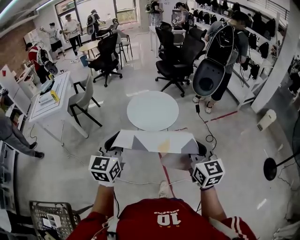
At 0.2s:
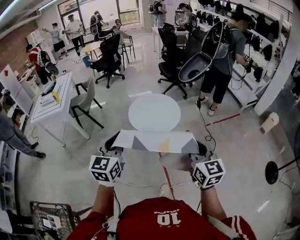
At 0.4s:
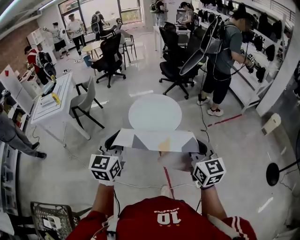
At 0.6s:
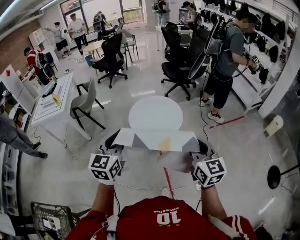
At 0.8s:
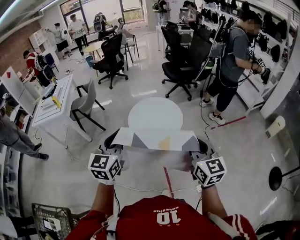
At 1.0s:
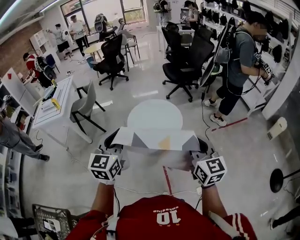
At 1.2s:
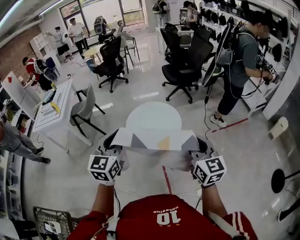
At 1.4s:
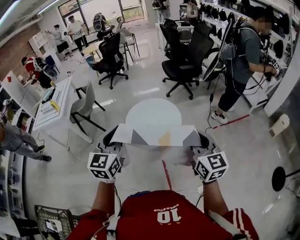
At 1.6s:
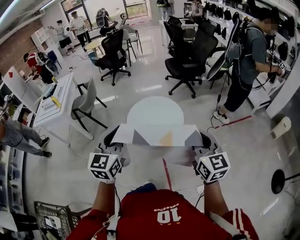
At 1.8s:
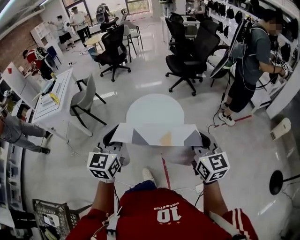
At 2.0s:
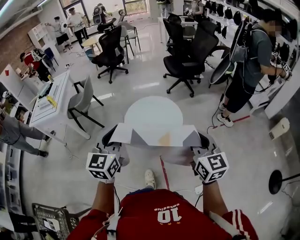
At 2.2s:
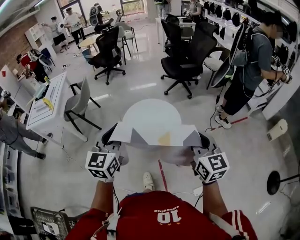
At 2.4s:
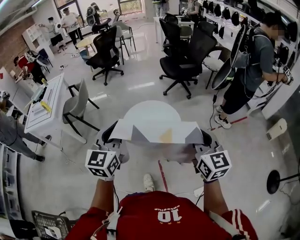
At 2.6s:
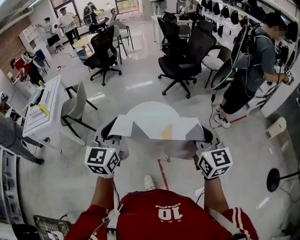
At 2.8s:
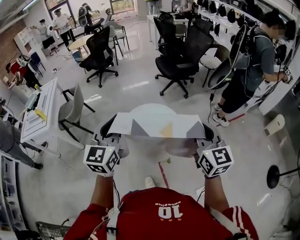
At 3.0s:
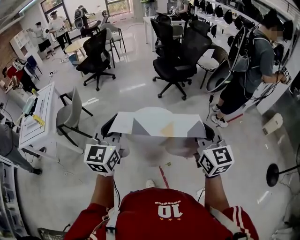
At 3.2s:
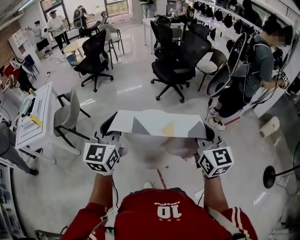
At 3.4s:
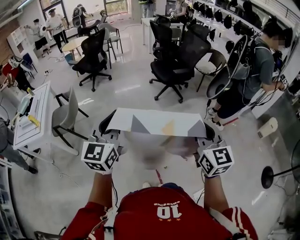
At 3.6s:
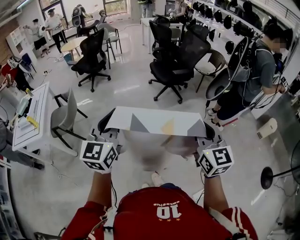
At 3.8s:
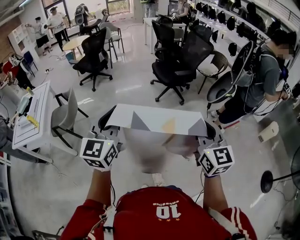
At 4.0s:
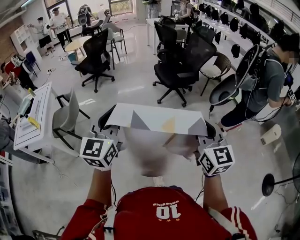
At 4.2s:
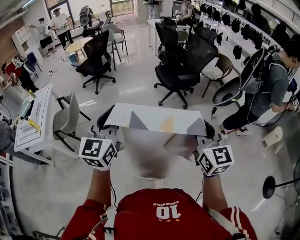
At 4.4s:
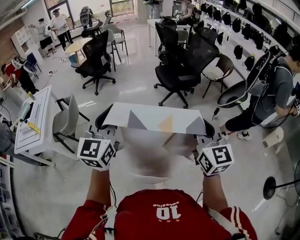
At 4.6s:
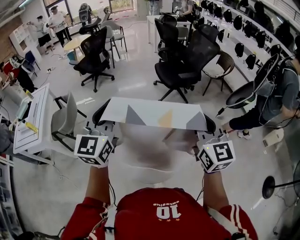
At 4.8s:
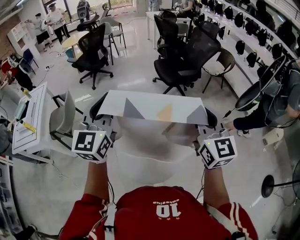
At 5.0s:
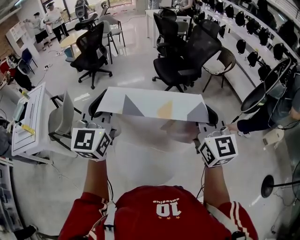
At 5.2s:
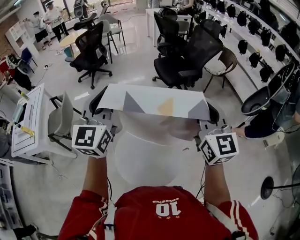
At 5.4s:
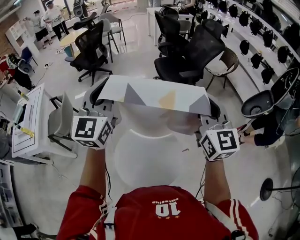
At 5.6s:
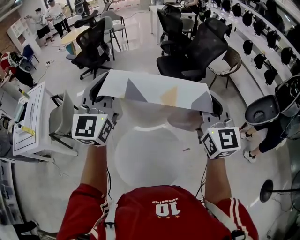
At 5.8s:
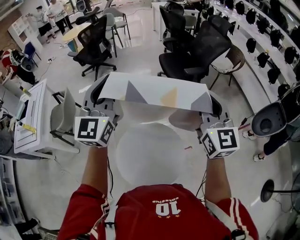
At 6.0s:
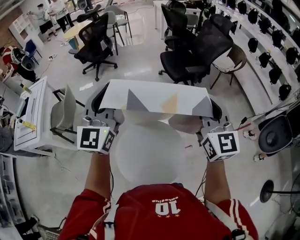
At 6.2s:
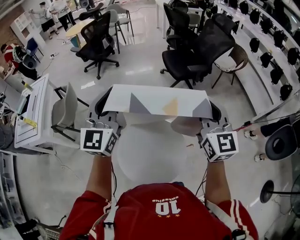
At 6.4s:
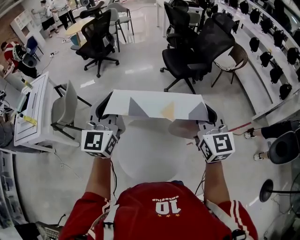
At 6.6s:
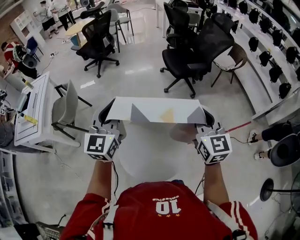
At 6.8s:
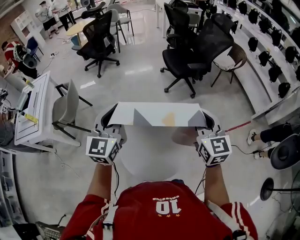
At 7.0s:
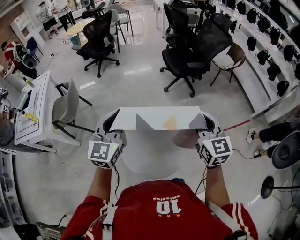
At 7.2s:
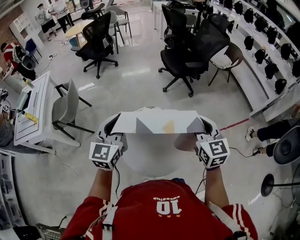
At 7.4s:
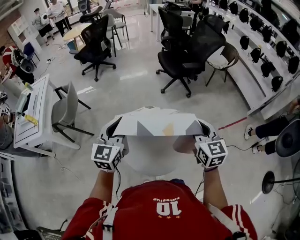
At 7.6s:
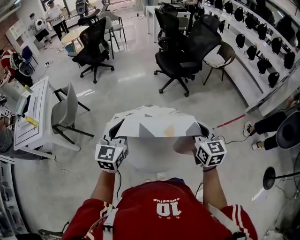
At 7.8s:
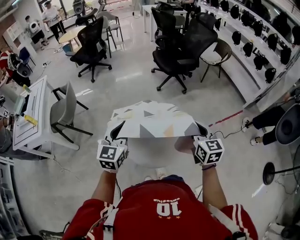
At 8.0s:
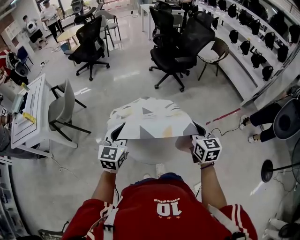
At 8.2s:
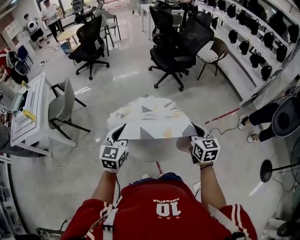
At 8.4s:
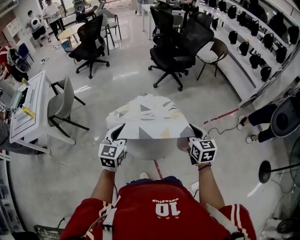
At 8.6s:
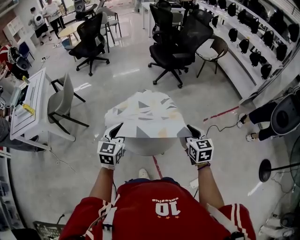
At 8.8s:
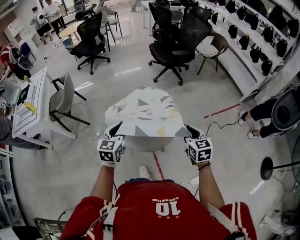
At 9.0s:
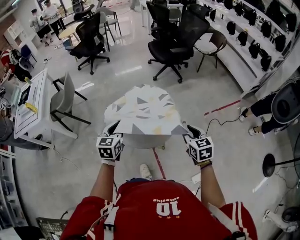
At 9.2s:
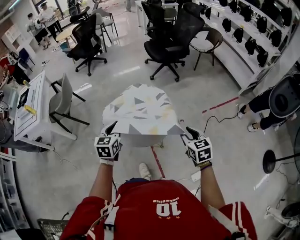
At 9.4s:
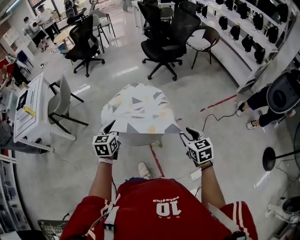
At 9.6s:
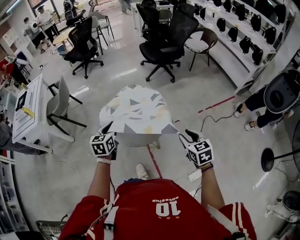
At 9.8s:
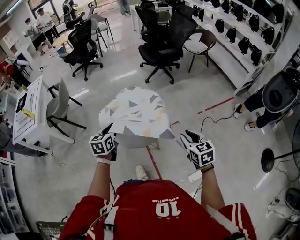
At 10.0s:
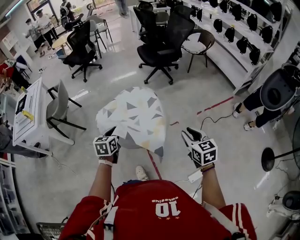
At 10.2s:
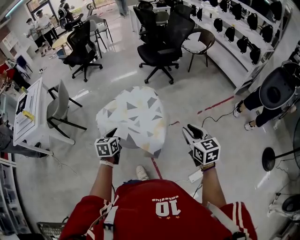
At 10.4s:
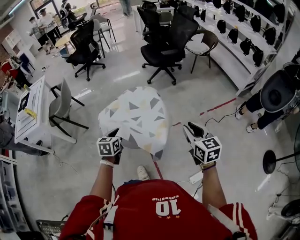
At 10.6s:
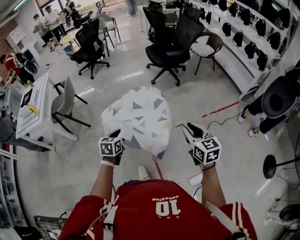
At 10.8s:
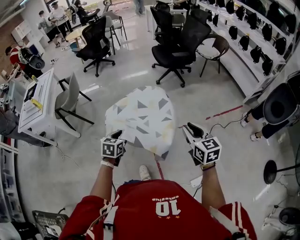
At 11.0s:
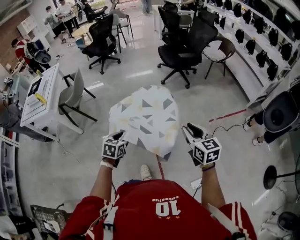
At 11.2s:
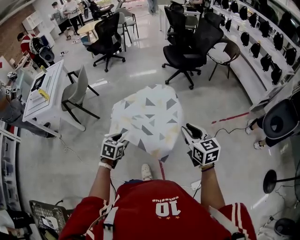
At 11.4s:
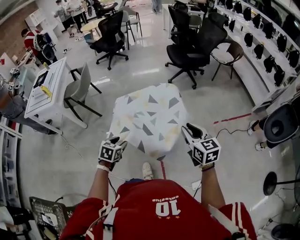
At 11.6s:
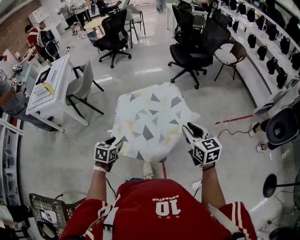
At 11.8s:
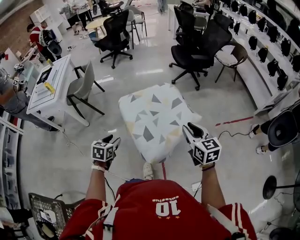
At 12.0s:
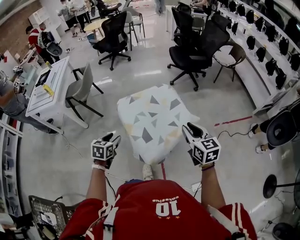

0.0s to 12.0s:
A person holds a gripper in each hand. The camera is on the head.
0.0s to 1.6s: The grippers both shift forward and to the right by roughly 20 cm.
1.6s to 3.0s: The grippers both shift forward by some 20 cm.
3.0s to 4.4s: The two grippers go about 15 cm forward.
4.4s to 6.0s: The grippers both shift forward by approximately 15 cm.
6.0s to 7.6s: Both grippers travel together backward and downward, some 25 cm. The left gripper changes its angle by about 20 degrees. The right gripper changes its angle by approximately 20 degrees.
7.6s to 9.0s: The left gripper moves backward and downward, approximately 15 cm. The right gripper heads backward, downward and to the right, covering about 20 cm, and opens.
9.0s to 10.4s: The left gripper shifts about 5 cm downward. Meanwhile the right gripper goes some 10 cm upward and to the right.
10.4s to 12.0s: The left gripper shifts about 15 cm to the left and backward, and opens up. The right gripper travels to the left by some 10 cm.

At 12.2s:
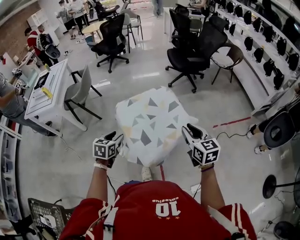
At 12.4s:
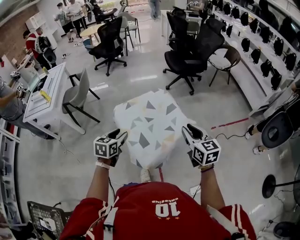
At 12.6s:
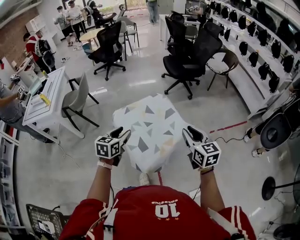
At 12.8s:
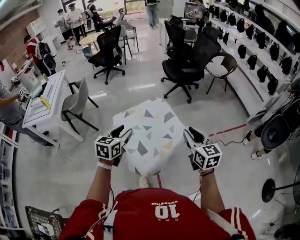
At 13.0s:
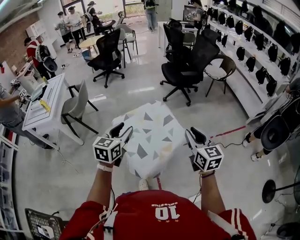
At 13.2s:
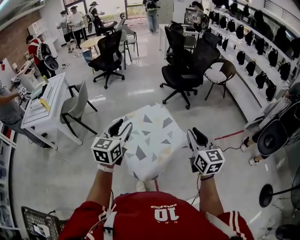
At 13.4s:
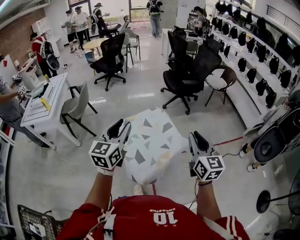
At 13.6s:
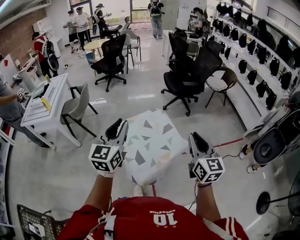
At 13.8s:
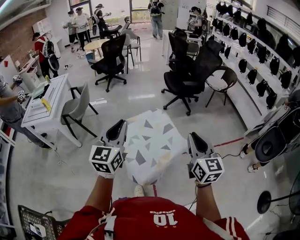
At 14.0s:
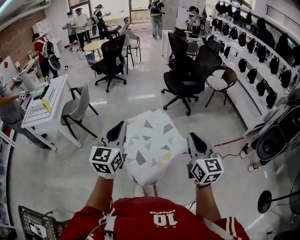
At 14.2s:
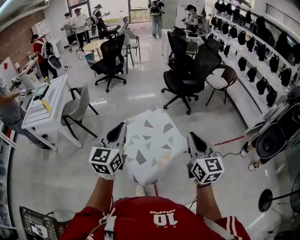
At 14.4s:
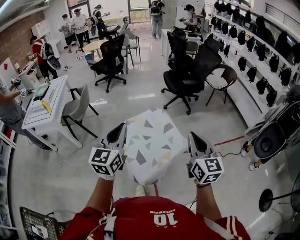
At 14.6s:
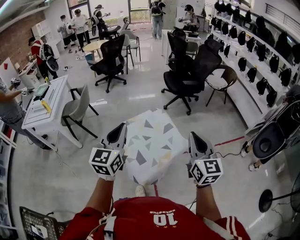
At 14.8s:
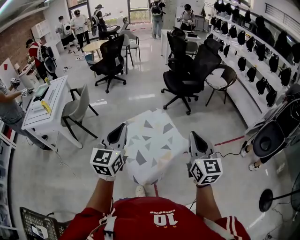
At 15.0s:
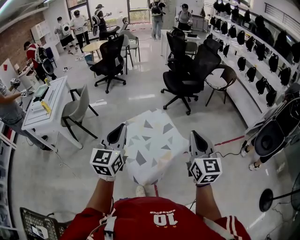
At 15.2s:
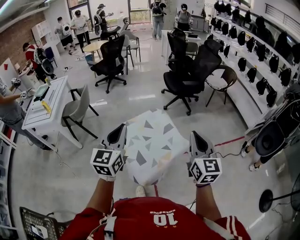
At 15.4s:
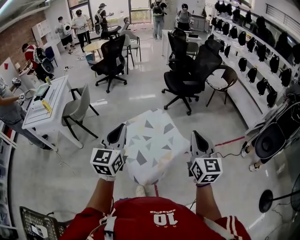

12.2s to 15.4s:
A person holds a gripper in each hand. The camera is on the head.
12.2s to 13.8s: The right gripper shifts some 15 cm upward, and turns by about 20 degrees; the left gripper goes some 25 cm upward, tilts its fingers about 40 degrees upward, and closes up.
13.8s to 15.4s: The grippers move only a little.

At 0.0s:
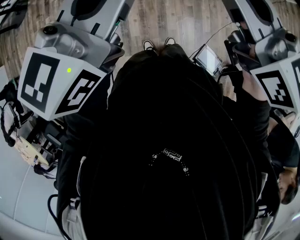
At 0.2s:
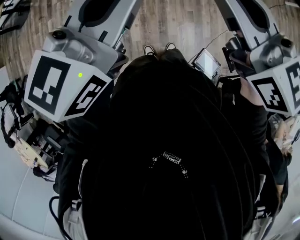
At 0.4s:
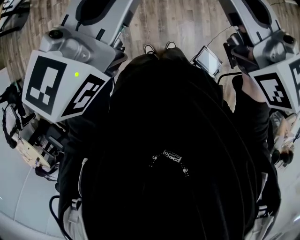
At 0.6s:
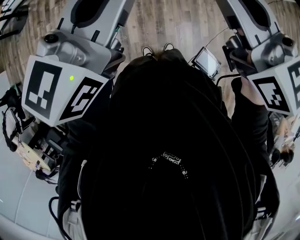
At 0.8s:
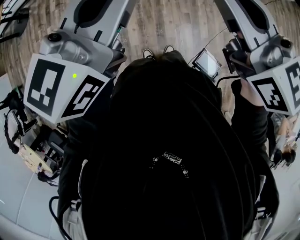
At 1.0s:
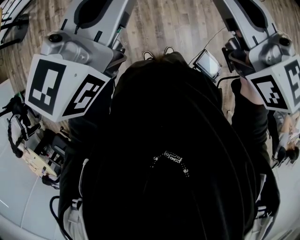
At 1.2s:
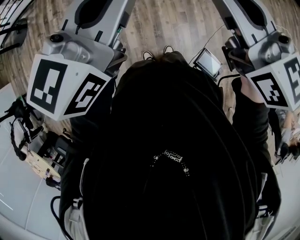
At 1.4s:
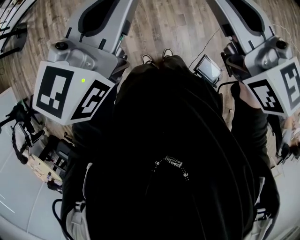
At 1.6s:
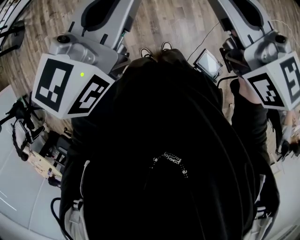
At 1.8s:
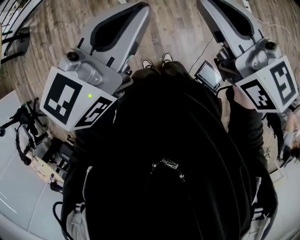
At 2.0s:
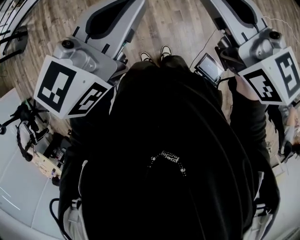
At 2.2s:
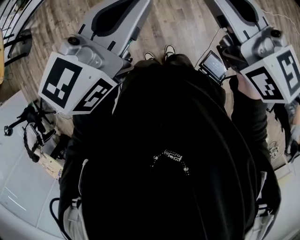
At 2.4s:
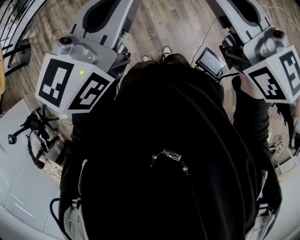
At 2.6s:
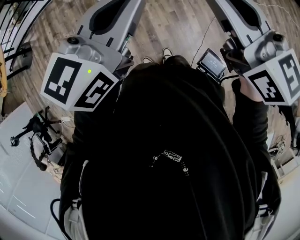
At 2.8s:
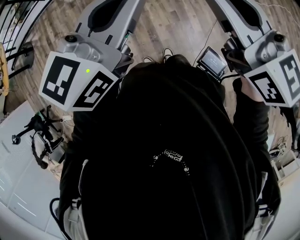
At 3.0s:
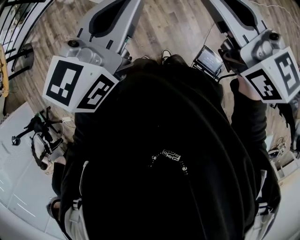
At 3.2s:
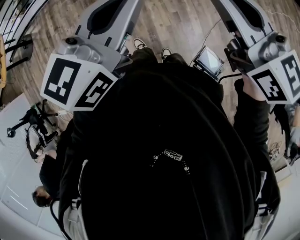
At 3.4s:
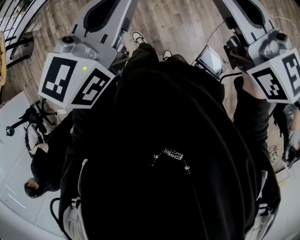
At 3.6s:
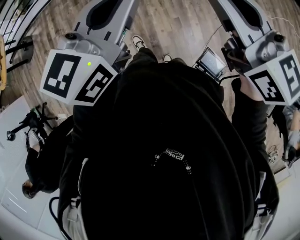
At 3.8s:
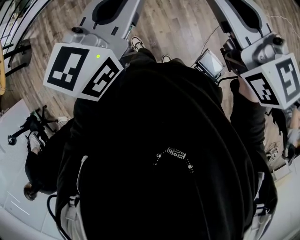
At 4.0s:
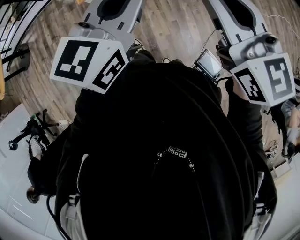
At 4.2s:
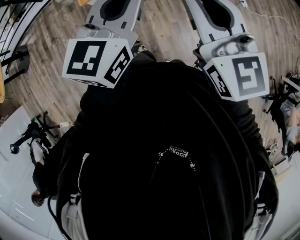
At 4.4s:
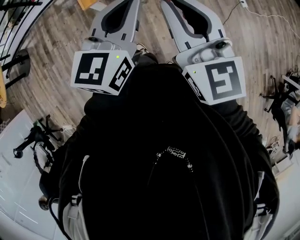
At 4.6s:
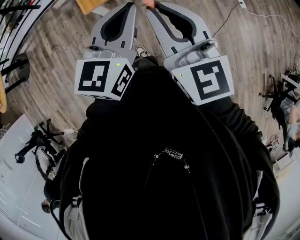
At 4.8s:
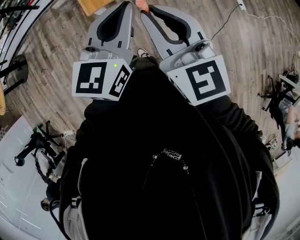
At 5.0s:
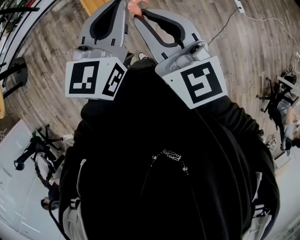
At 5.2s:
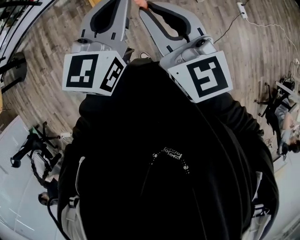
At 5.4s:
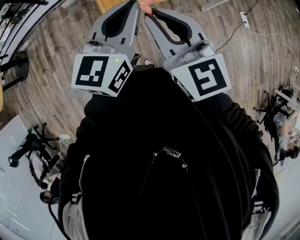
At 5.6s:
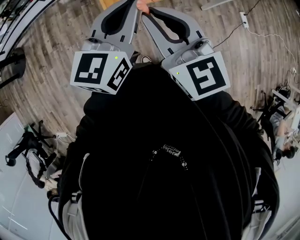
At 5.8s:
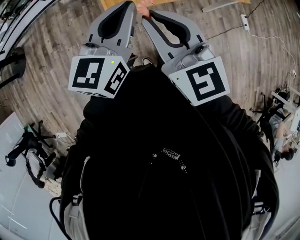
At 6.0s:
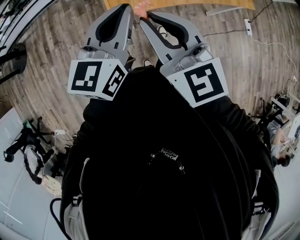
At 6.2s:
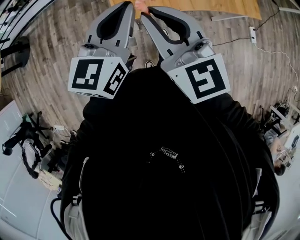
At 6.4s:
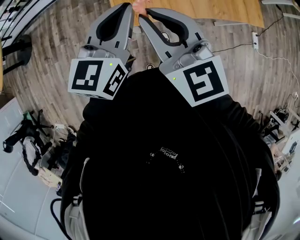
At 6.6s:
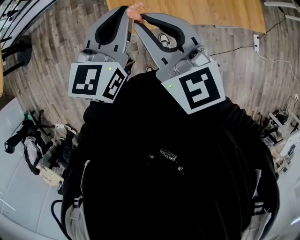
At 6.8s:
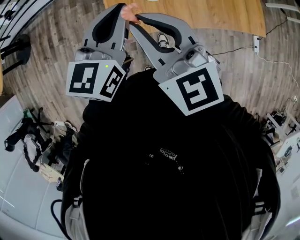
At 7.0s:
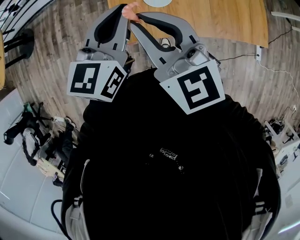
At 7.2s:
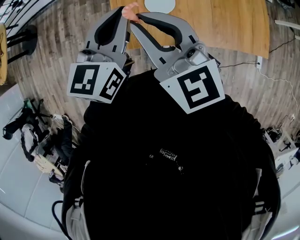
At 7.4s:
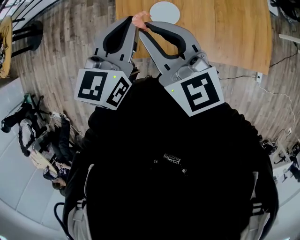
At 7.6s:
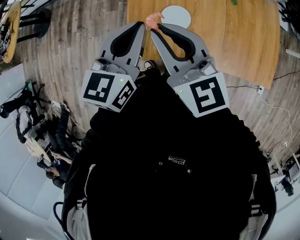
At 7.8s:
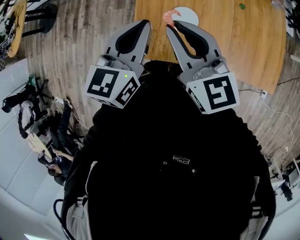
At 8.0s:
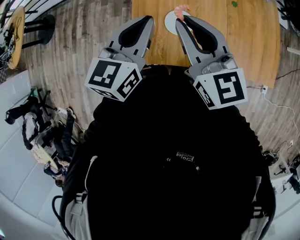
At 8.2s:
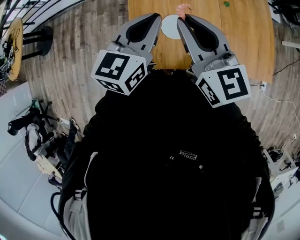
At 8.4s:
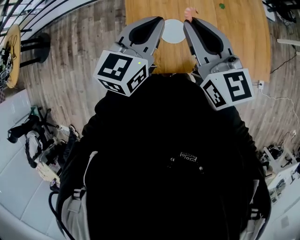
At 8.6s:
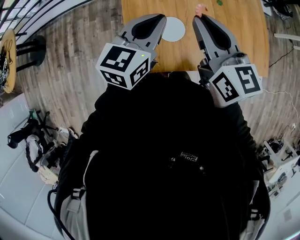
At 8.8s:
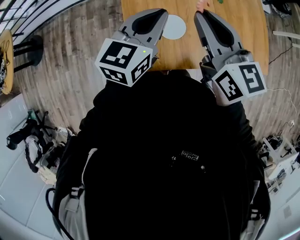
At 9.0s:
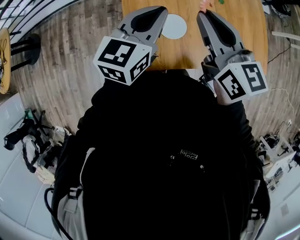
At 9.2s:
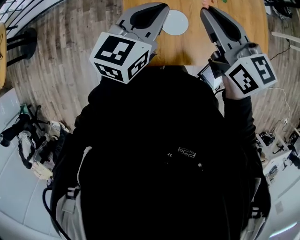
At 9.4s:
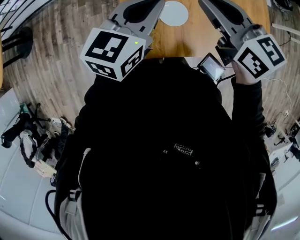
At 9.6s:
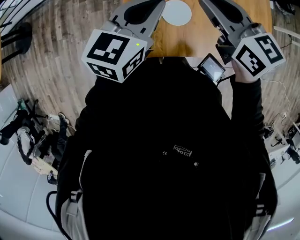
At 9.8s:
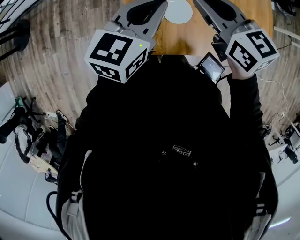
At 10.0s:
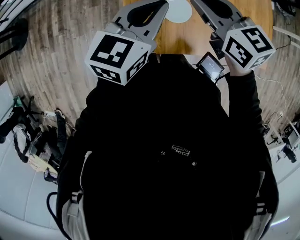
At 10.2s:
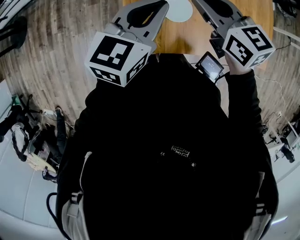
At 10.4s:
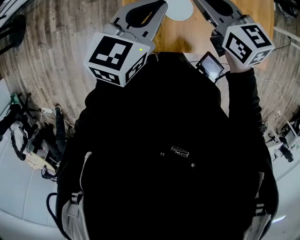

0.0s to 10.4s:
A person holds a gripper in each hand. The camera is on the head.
0.0s to 1.4s: The right gripper heads to the right, covering roughly 5 cm.
1.4s to 3.0s: The two grippers go roughly 15 cm to the right.
3.0s to 4.4s: The left gripper goes some 20 cm forward and to the left. Meanwhile the right gripper heads to the left and forward, covering about 20 cm.
4.4s to 6.0s: Both grippers travel together to the left and forward, about 25 cm.
6.0s to 7.4s: The two grippers go approximately 25 cm forward.
7.4s to 9.0s: The right gripper goes approximately 10 cm forward and to the right. Meanwhile the left gripper is displaced forward by roughly 5 cm.
9.0s to 10.4s: The right gripper shifts approximately 10 cm downward, and changes its angle by approximately 20 degrees; the left gripper changes place by some 5 cm.
